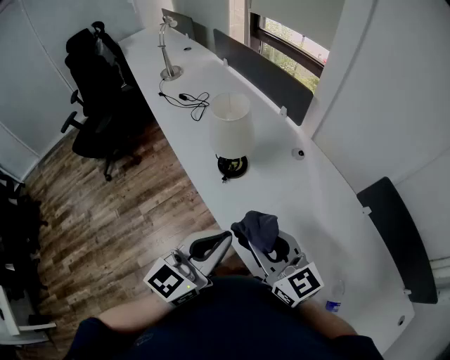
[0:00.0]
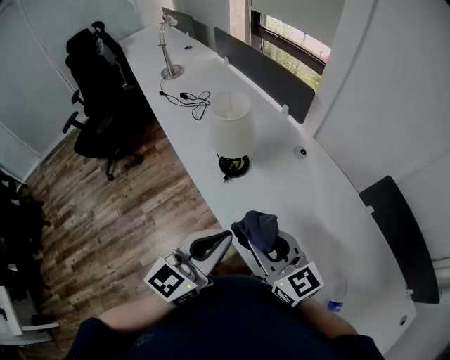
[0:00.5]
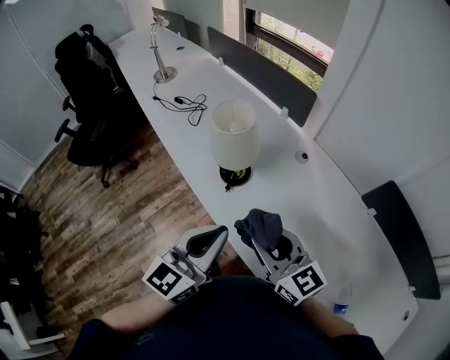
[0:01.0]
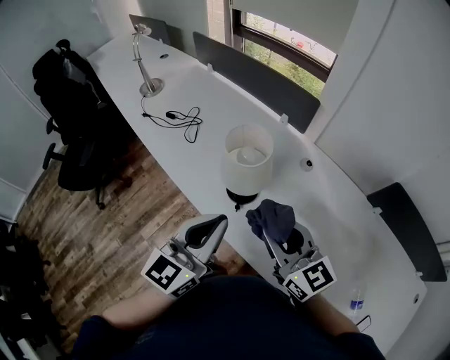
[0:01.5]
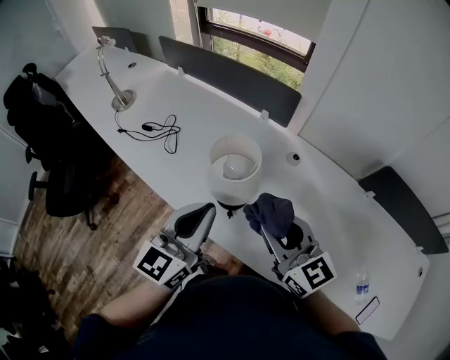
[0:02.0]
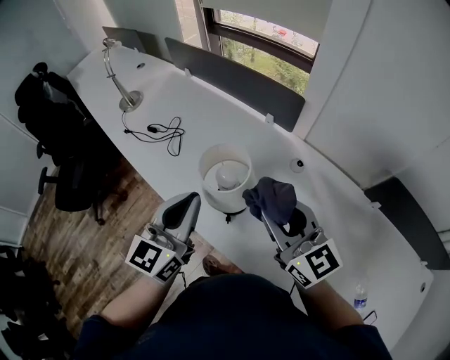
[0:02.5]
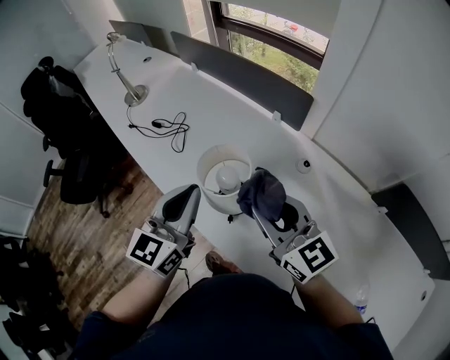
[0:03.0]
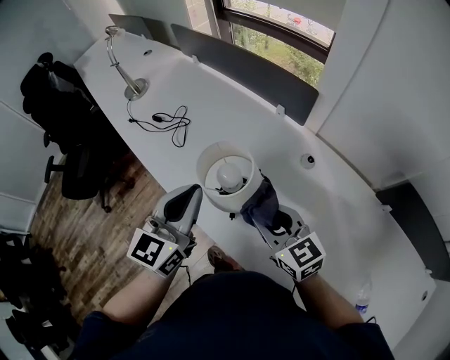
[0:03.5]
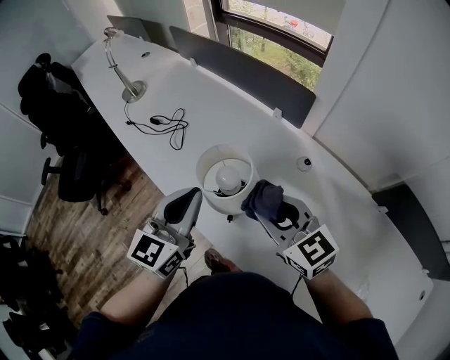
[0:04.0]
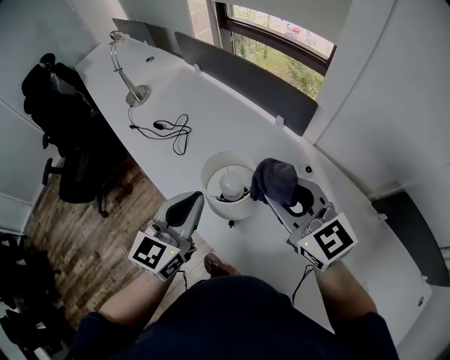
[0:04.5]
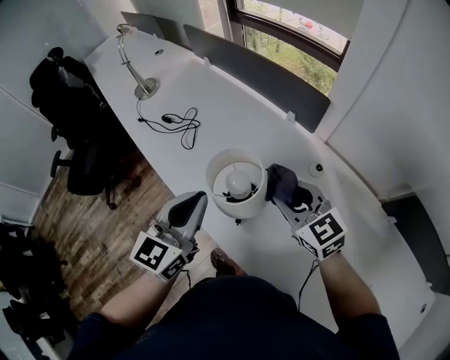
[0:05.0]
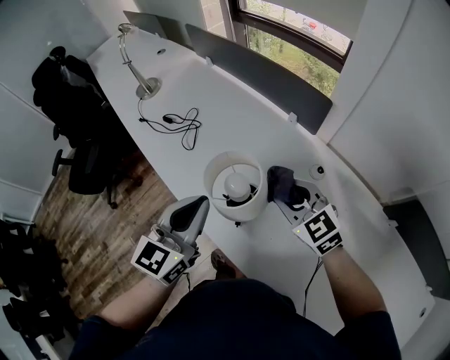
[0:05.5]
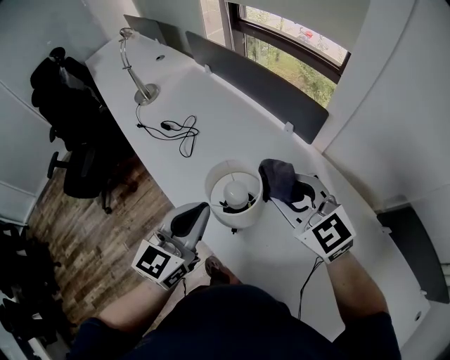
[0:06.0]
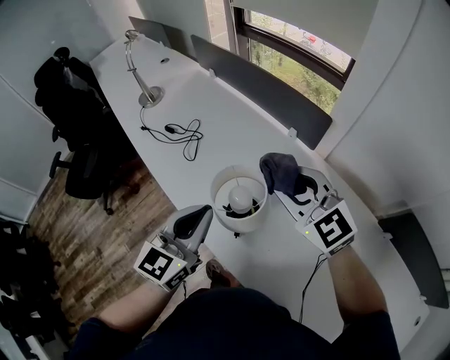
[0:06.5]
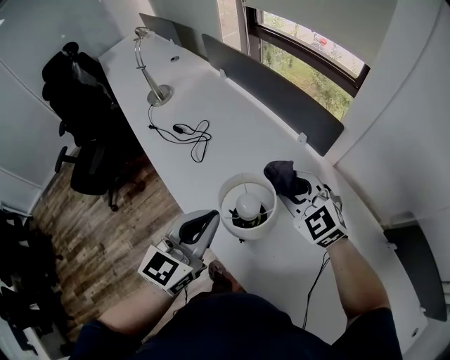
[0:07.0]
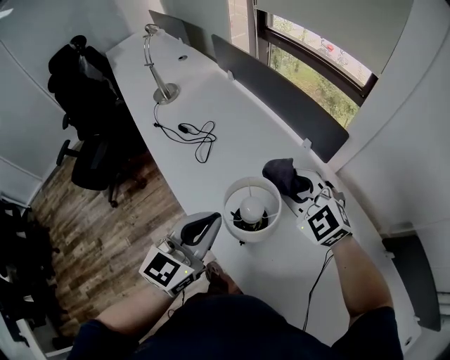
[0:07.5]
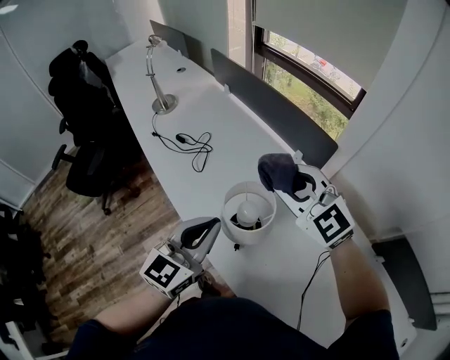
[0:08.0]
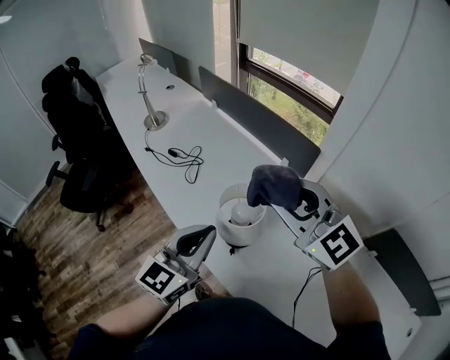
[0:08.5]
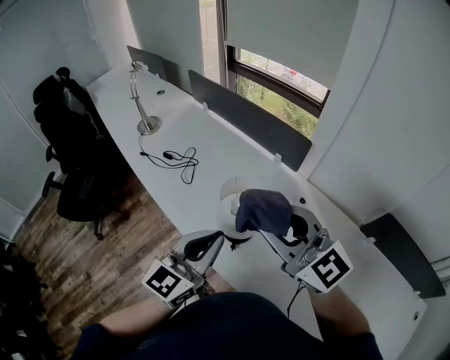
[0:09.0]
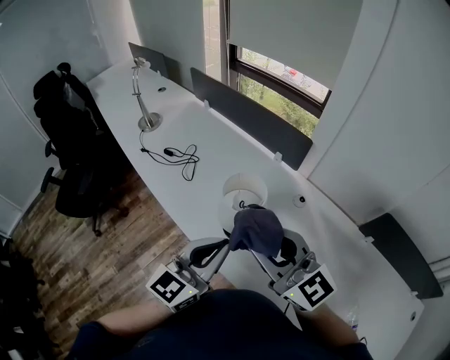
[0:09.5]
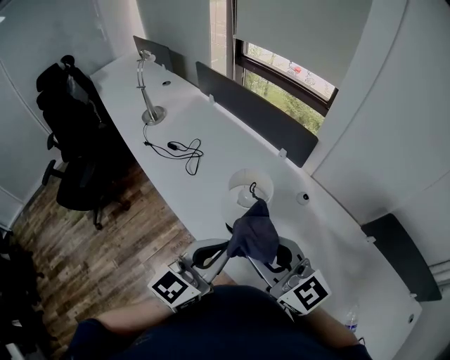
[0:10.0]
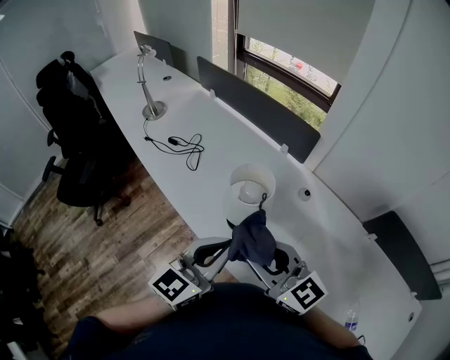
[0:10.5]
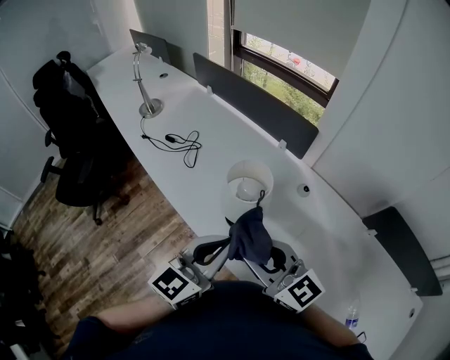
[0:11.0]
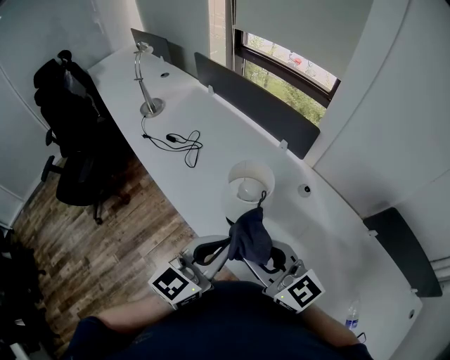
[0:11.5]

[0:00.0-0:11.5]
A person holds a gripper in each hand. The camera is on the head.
0:00.0 to 0:02.0: The left gripper travels forward and to the left by some 25 cm, while the right gripper is displaced forward by about 15 cm, and changes its angle by some 20 degrees.
0:02.0 to 0:04.0: Both grippers travel together forward, some 5 cm. The right gripper moves approximately 10 cm downward and comes back.
0:04.0 to 0:06.0: The right gripper goes up and down, approximately 10 cm each way, reversing 2 times.
0:06.0 to 0:07.5: The right gripper travels forward by approximately 5 cm, and rotates roughly 20 degrees.
0:07.5 to 0:09.5: The left gripper travels backward by some 10 cm. The right gripper travels backward and upward by approximately 25 cm, and changes its angle by about 40 degrees.
0:09.5 to 0:11.5: The right gripper shifts approximately 10 cm downward.

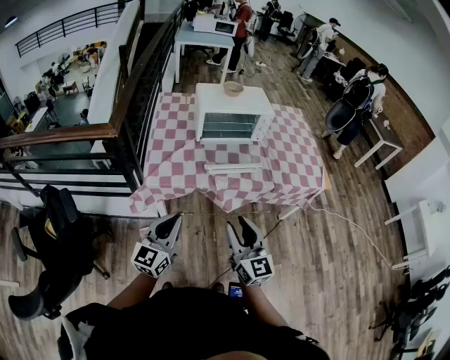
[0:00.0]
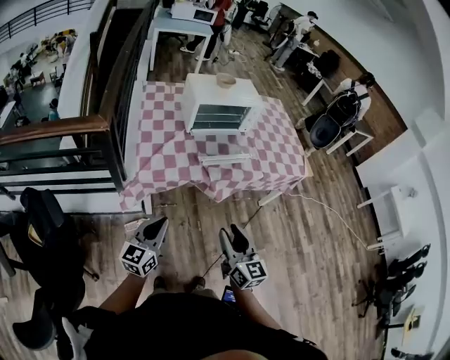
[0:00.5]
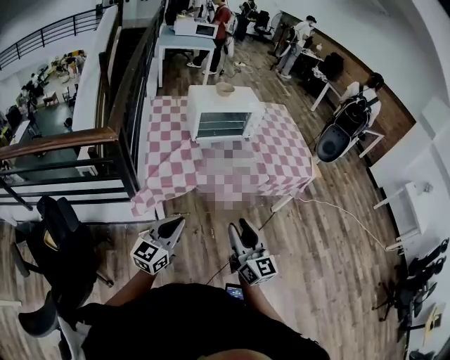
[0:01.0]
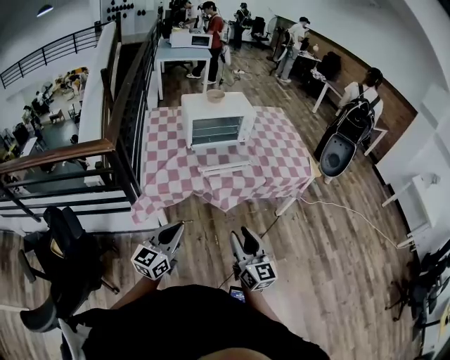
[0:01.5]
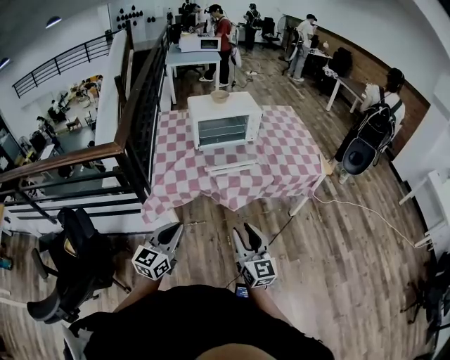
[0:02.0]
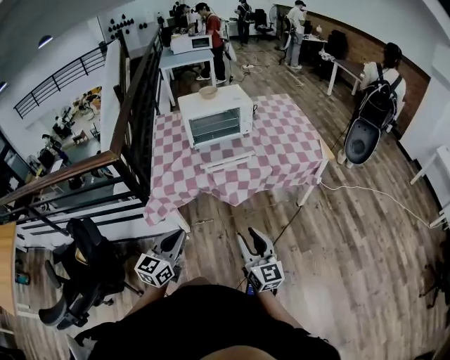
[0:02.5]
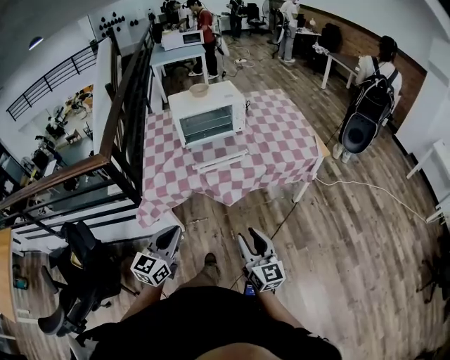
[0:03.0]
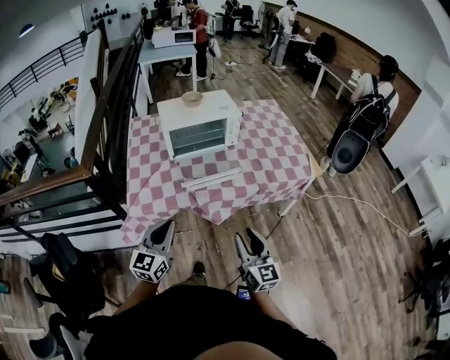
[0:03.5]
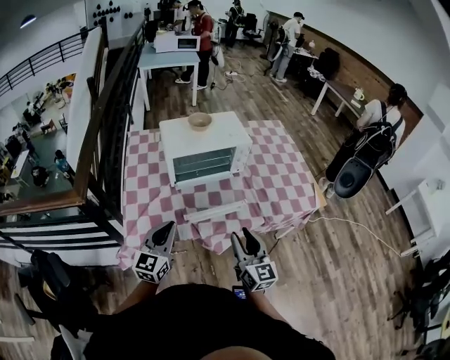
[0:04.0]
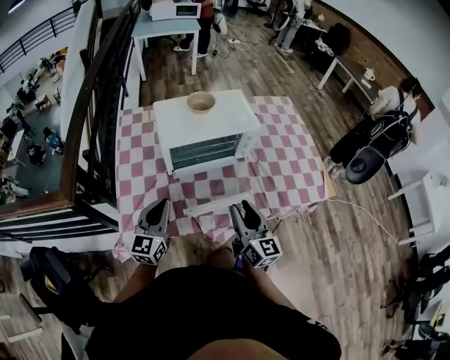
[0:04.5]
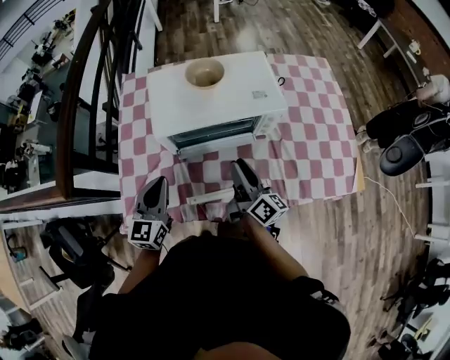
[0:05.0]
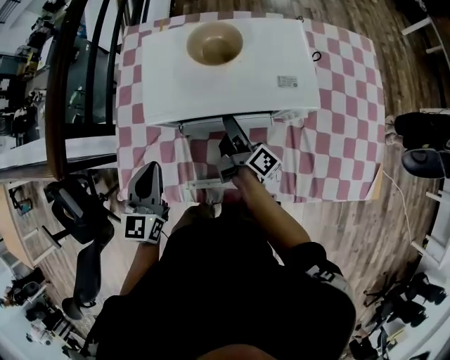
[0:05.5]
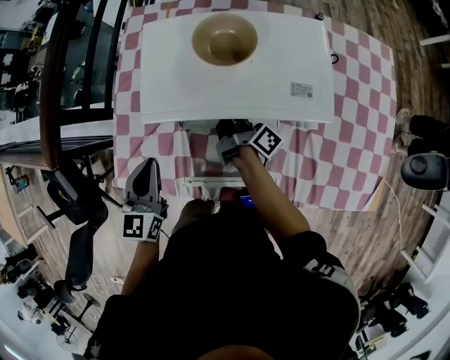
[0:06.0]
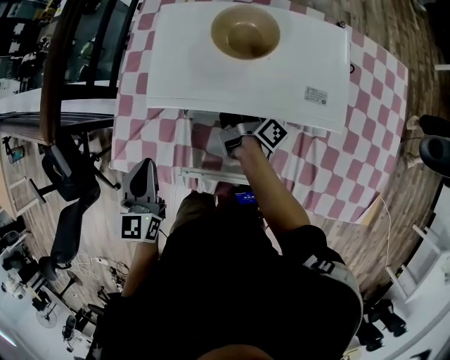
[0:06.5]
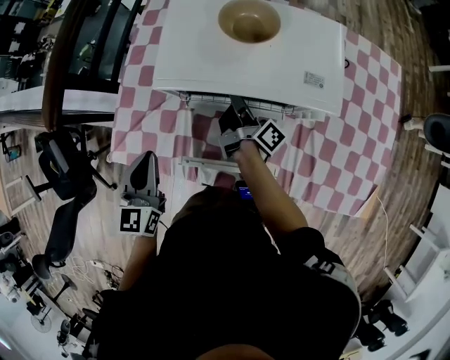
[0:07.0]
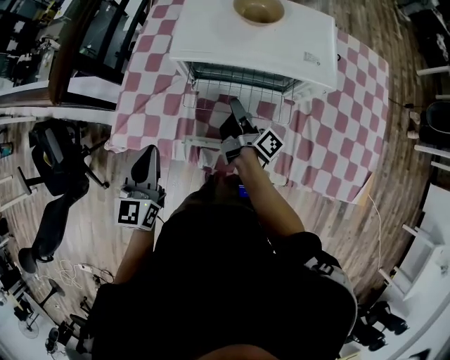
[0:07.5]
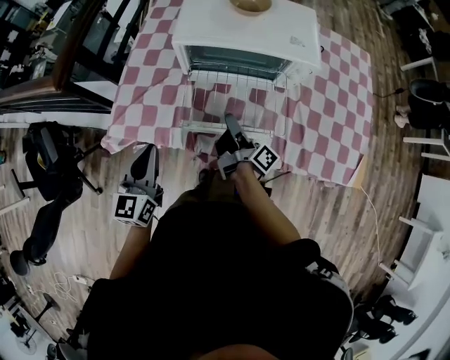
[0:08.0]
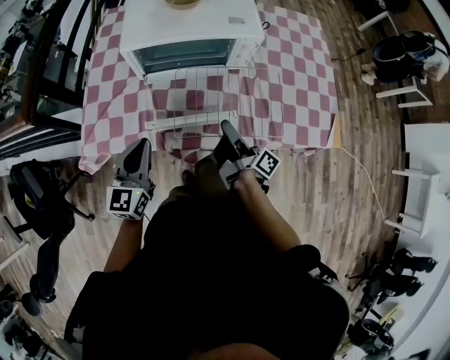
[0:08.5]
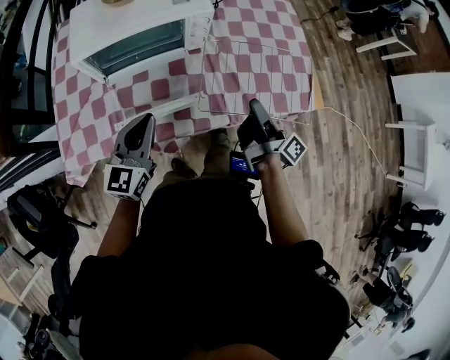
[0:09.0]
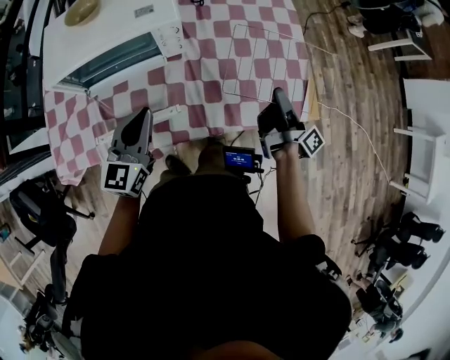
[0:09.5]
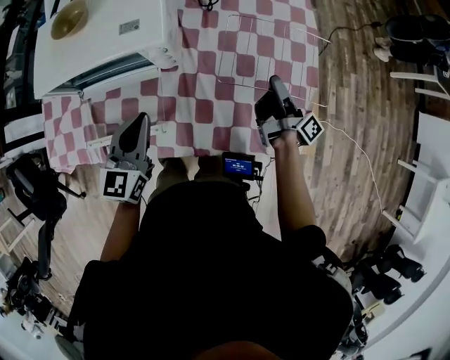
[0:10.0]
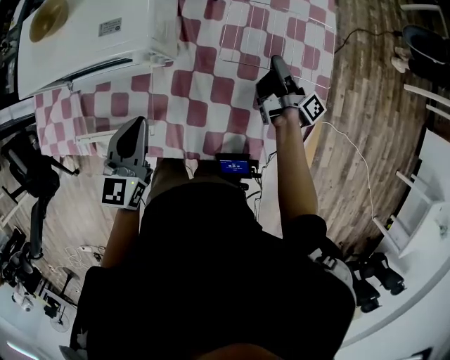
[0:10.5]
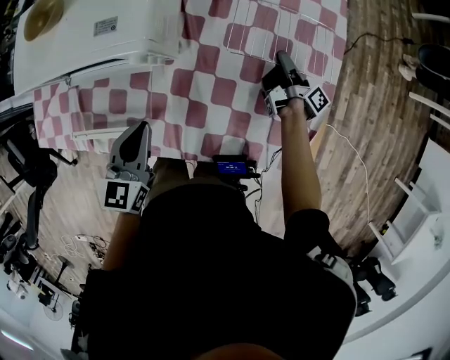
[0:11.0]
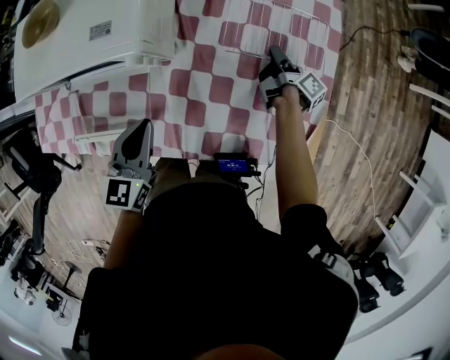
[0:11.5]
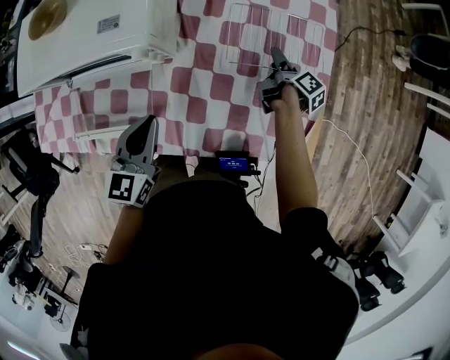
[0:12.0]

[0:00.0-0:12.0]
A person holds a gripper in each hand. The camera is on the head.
0:00.0 to 0:02.0: The grippers both shift backward by roughly 5 cm. The left gripper travels to the left and back again, roughly 10 cm each way; the right gripper goes to the left and returns, approximately 10 cm each way.
0:02.0 to 0:04.0: Both grippers travel together forward, roughly 30 cm.
0:04.0 to 0:06.0: The left gripper changes place by roughly 25 cm, and rotates approximately 30 degrees. Meanwhile the right gripper moves approximately 50 cm, and rolls clockwise, seen from behind, by some 80 degrees.
0:06.0 to 0:08.0: The grippers both shift backward by roughly 20 cm. The right gripper closes.
0:08.0 to 0:10.0: The left gripper ends up about 40 cm from where it was. Meanwhile the right gripper shifts by some 50 cm.
0:10.0 to 0:12.0: The right gripper heads downward and forward, covering some 20 cm, points its fingers roughly 40 degrees further downward, and opens up. Meanwhile the left gripper goes some 5 cm downward.

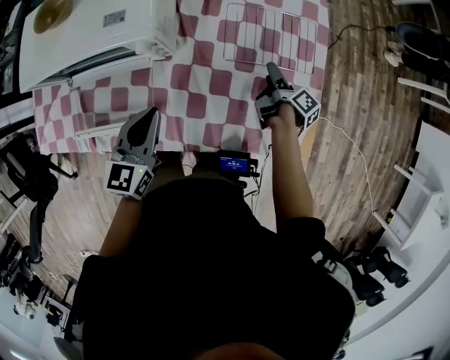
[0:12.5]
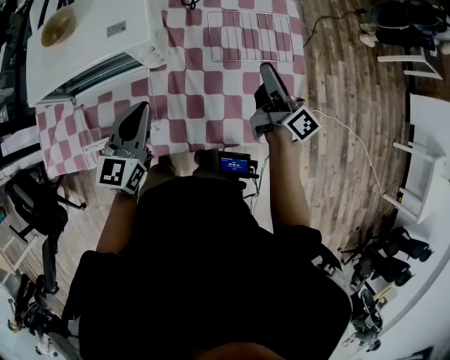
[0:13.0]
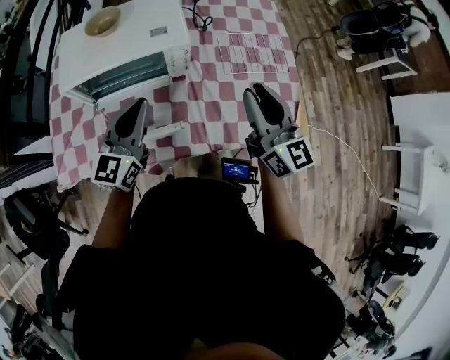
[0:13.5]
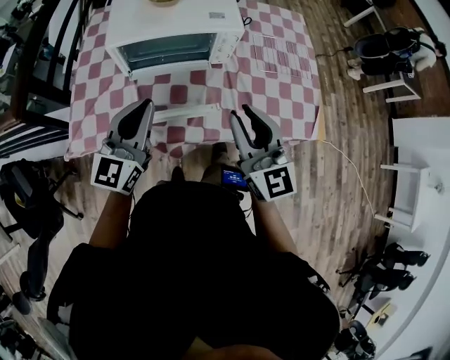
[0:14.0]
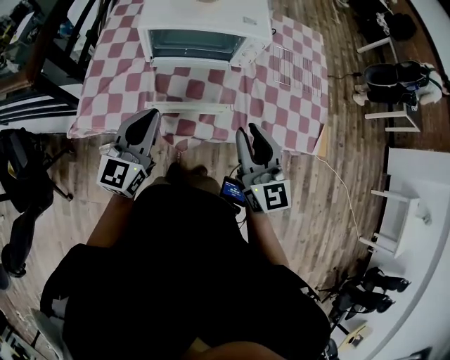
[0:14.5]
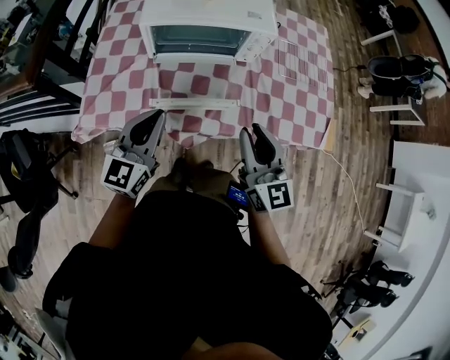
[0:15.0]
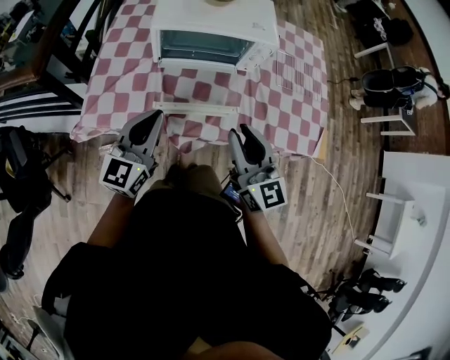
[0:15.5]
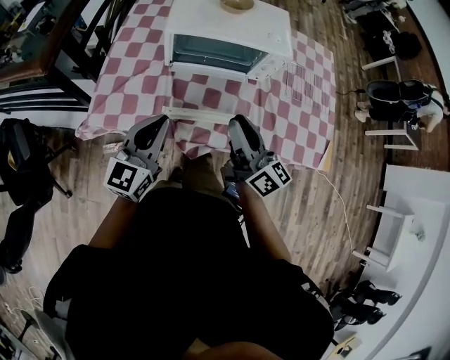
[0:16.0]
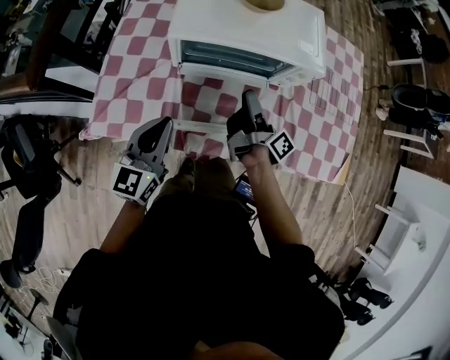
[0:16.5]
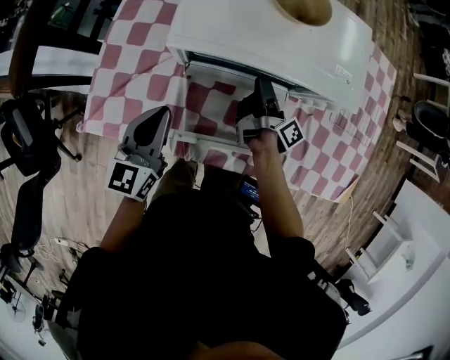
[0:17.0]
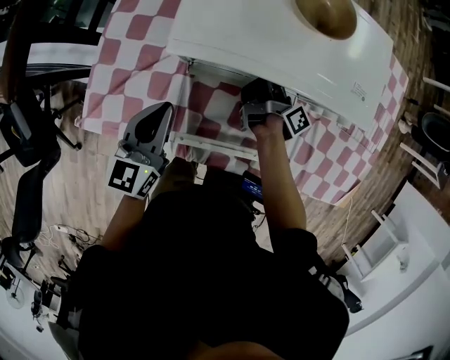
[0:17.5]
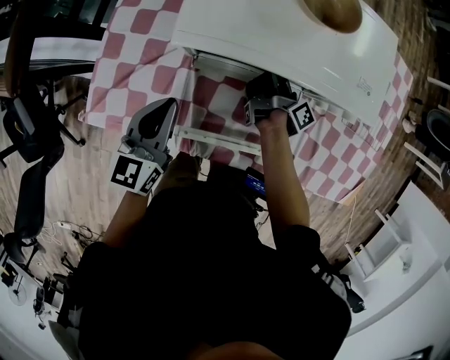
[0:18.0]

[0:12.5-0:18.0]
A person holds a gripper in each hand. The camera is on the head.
0:12.5 to 0:14.5: The left gripper is displaced to the left, backward and upward by approximately 35 cm, and swivels about 20 degrees. Meanwhile the right gripper moves to the left, backward and upward, some 60 cm, twists about 90 degrees counterclockwise, seen from behind, and closes up.
0:14.5 to 0:16.0: The right gripper moves to the left and forward, about 10 cm, and changes its angle by roughly 40 degrees.
0:16.0 to 0:18.0: The left gripper goes some 25 cm forward and downward, and rotates about 20 degrees; the right gripper travels forward and downward by about 40 cm, and rotates around the line of its fingers by some 60 degrees, clockwise from behind.
